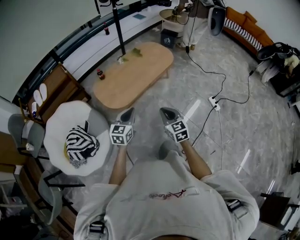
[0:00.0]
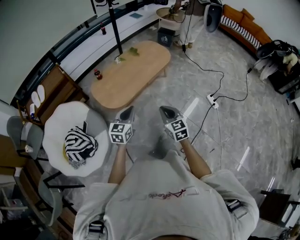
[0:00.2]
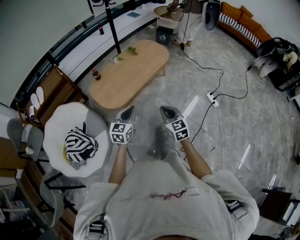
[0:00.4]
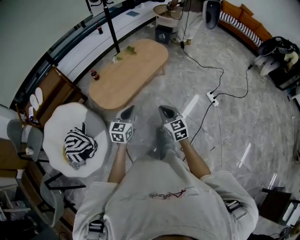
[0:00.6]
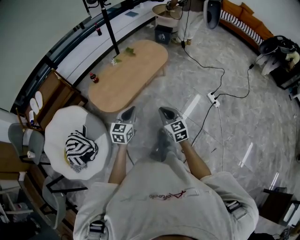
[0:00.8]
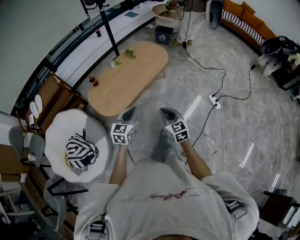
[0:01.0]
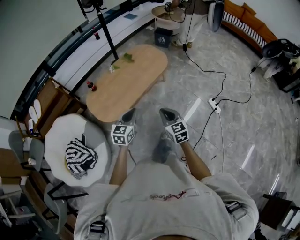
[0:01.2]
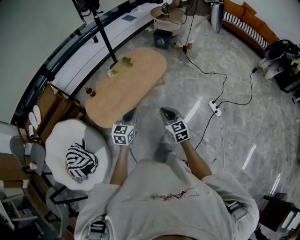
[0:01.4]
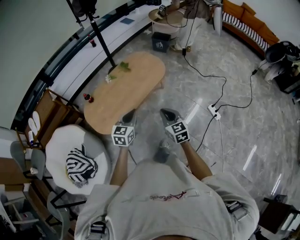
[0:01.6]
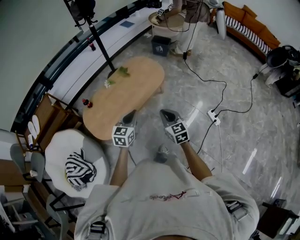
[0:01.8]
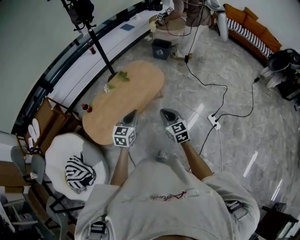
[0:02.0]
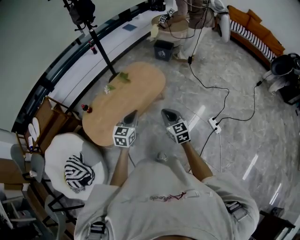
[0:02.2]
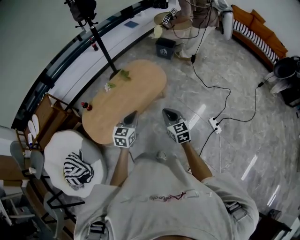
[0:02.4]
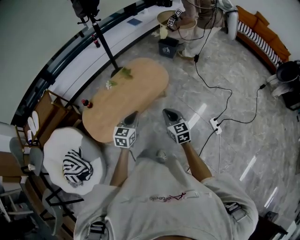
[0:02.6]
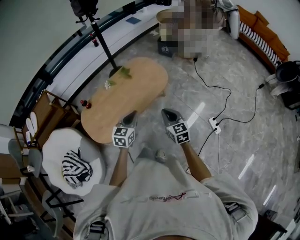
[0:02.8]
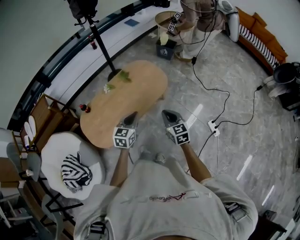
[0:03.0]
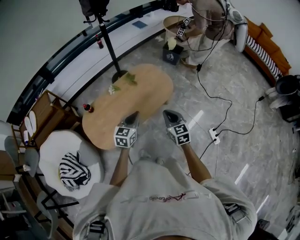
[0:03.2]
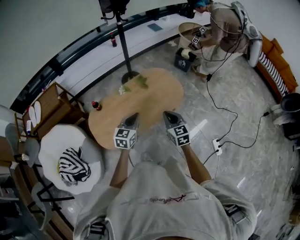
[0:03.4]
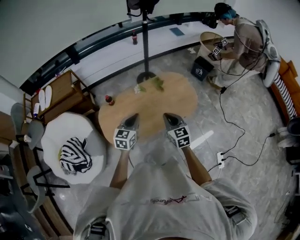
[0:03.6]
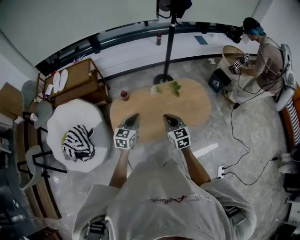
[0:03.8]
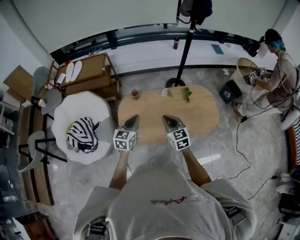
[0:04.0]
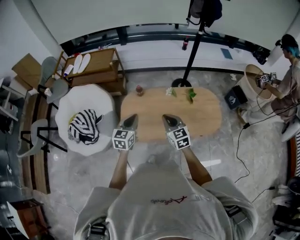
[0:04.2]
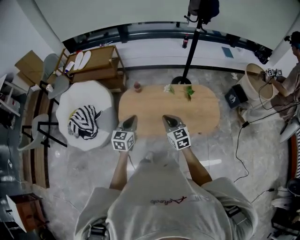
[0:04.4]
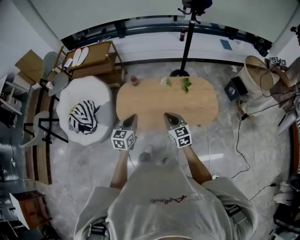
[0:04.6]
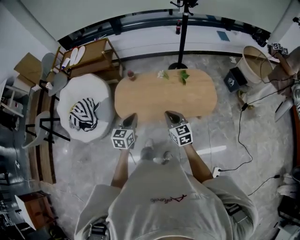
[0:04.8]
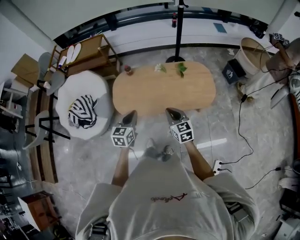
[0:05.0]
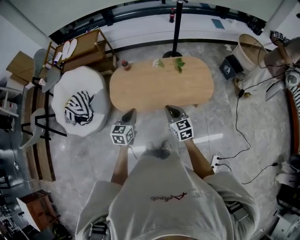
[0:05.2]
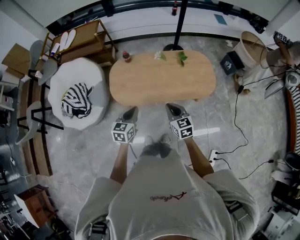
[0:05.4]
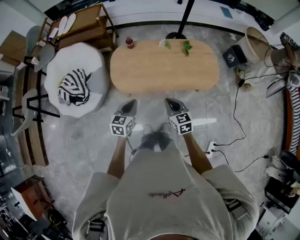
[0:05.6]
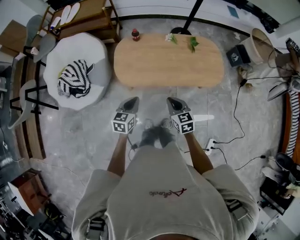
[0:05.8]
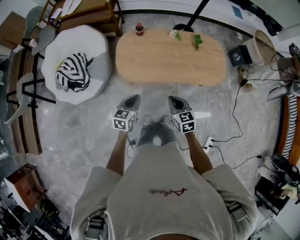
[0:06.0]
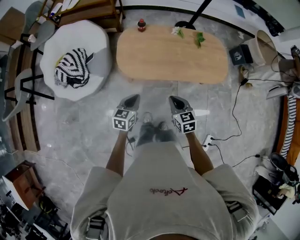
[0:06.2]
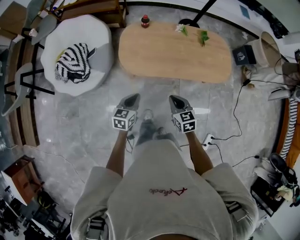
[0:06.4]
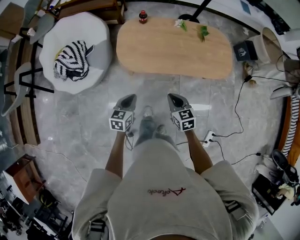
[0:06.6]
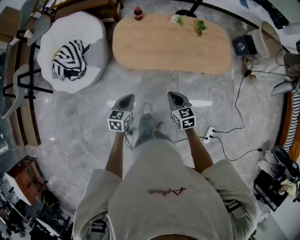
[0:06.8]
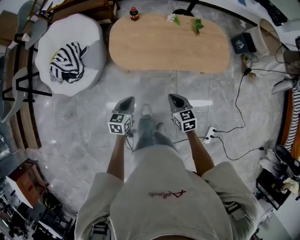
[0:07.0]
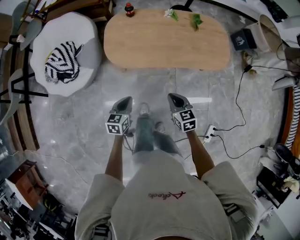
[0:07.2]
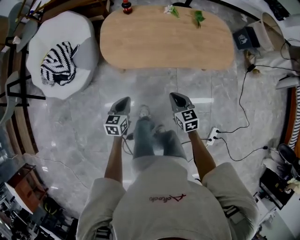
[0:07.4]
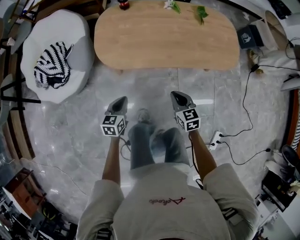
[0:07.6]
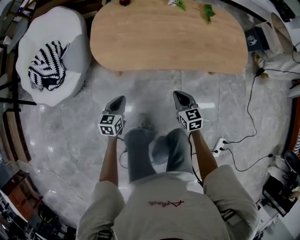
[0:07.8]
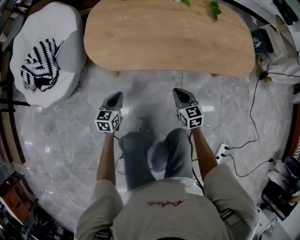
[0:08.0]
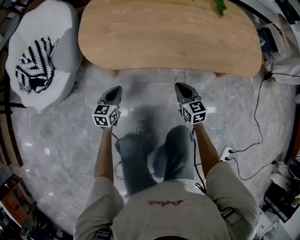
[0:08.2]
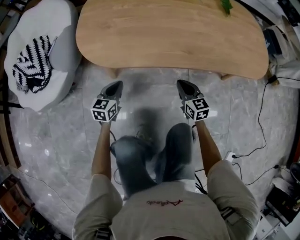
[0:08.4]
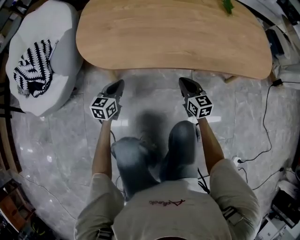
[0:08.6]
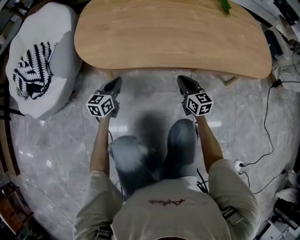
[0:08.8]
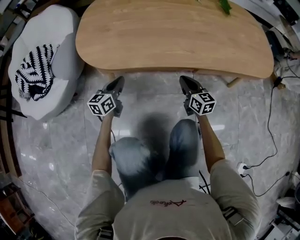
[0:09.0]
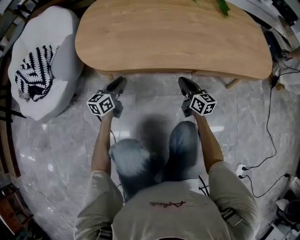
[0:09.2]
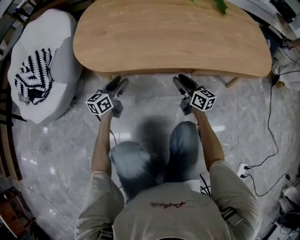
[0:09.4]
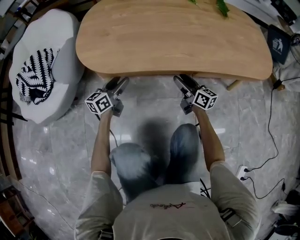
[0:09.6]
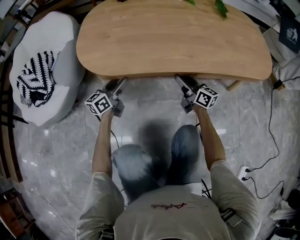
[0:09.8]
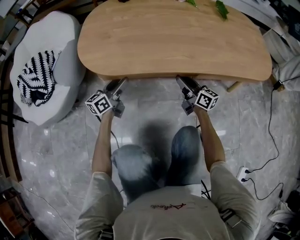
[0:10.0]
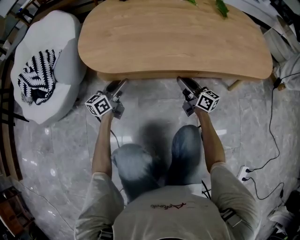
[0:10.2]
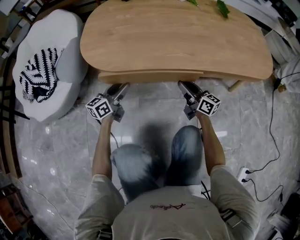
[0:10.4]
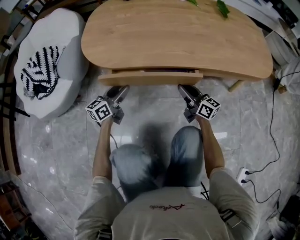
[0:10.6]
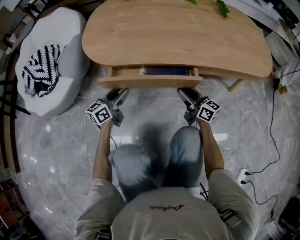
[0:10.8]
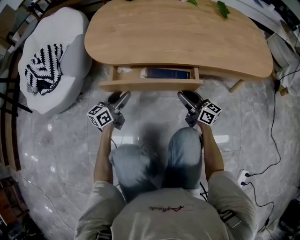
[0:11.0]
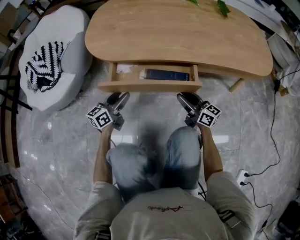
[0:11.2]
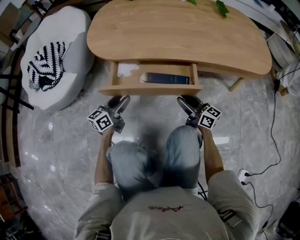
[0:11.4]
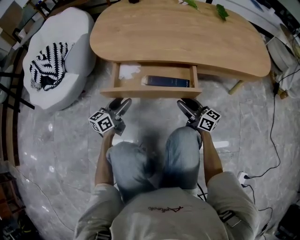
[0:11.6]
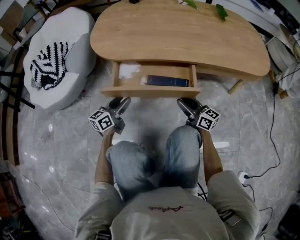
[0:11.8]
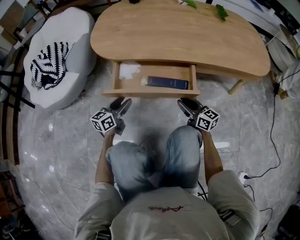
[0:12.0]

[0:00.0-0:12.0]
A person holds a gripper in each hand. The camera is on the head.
0:00.0 to 0:01.6: Both grippers travel together forward and to the right, roughly 30 cm.
0:01.6 to 0:03.0: The two grippers go some 20 cm forward.
0:03.0 to 0:04.4: The right gripper moves approximately 25 cm, and turns by roughly 50 degrees. Meanwhile the left gripper moves about 25 cm, and turns by about 50 degrees.
0:04.4 to 0:06.0: The right gripper goes some 20 cm backward, downward and to the left; the left gripper travels downward, backward and to the left by about 20 cm.
0:06.0 to 0:07.6: The grippers both shift downward by approximately 25 cm.
0:07.6 to 0:09.0: The grippers both shift downward and forward by approximately 35 cm. The left gripper swivels about 20 degrees. Meanwhile the right gripper rotates about 20 degrees.
0:09.0 to 0:10.4: The right gripper rotates some 30 degrees, and opens. The left gripper opens up.
0:10.4 to 0:12.0: The grippers both shift backward by some 15 cm.

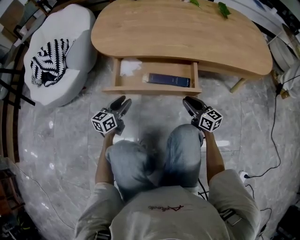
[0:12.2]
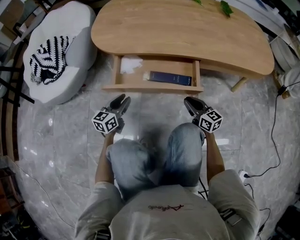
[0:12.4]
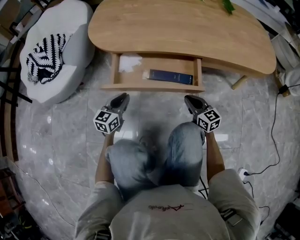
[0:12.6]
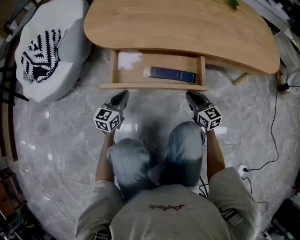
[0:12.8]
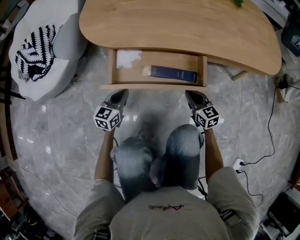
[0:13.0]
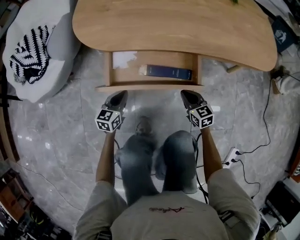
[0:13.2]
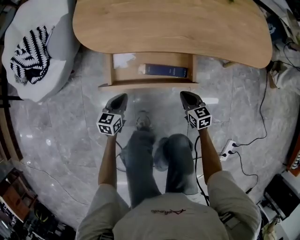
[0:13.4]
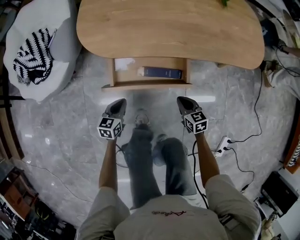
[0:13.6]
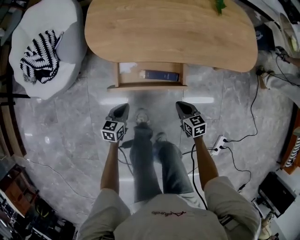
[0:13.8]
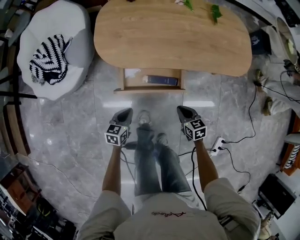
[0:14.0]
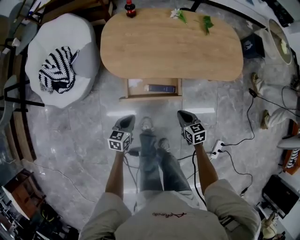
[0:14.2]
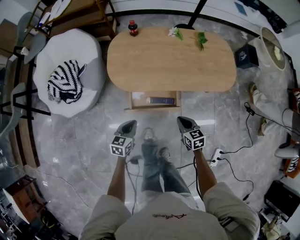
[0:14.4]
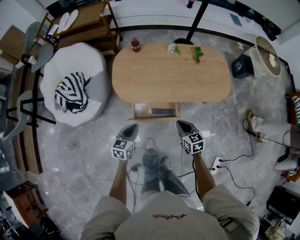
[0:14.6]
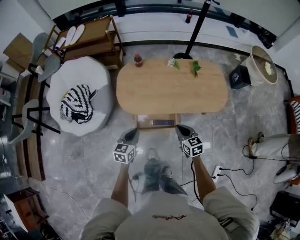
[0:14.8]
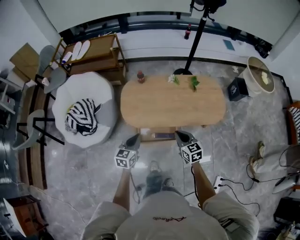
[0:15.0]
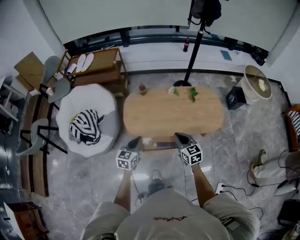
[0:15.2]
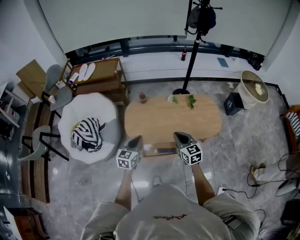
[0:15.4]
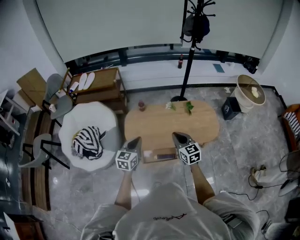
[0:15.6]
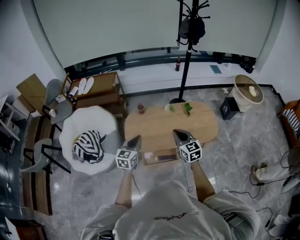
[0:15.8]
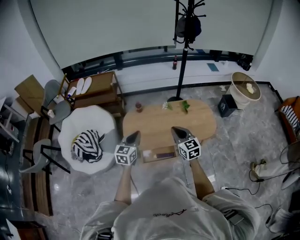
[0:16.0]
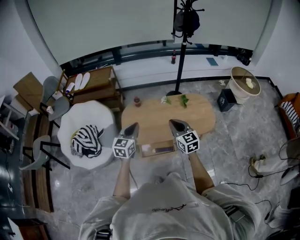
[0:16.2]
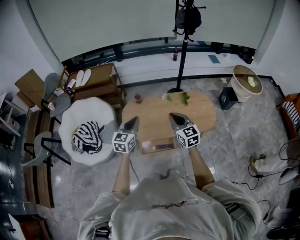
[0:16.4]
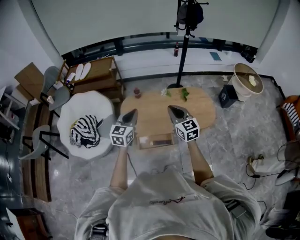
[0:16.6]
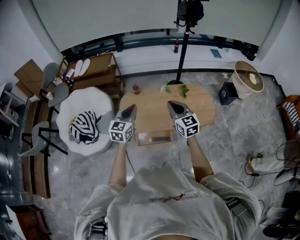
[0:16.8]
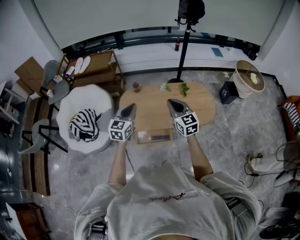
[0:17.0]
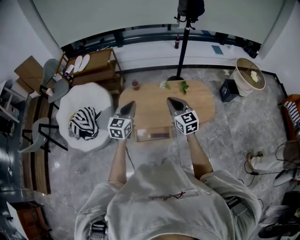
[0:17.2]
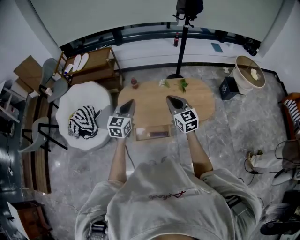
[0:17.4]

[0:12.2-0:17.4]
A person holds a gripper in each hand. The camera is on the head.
0:12.2 to 0:14.0: Both grippers move upward, about 20 cm. The left gripper swivels some 20 degrees, and closes. The right gripper points its fingers roughly 30 degrees further downward.
0:14.0 to 0:15.6: The grippers both shift upward by roughly 60 cm. The left gripper rotates approximately 30 degrees. The right gripper turns by about 30 degrees.
0:15.6 to 0:17.4: The two grippers go roughly 10 cm upward and to the right.

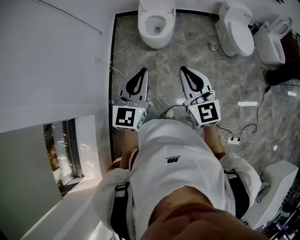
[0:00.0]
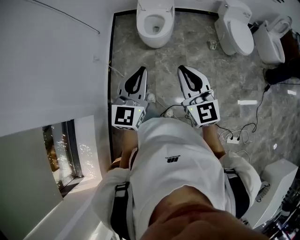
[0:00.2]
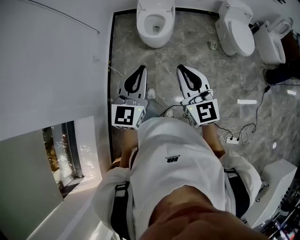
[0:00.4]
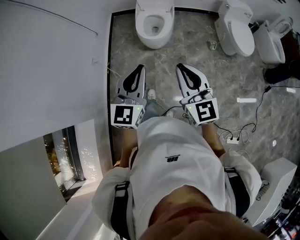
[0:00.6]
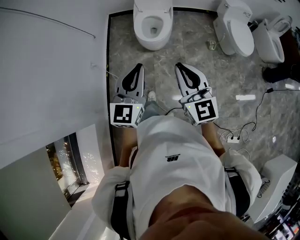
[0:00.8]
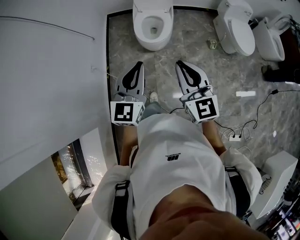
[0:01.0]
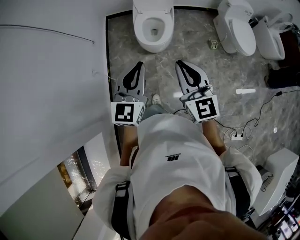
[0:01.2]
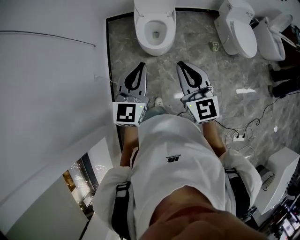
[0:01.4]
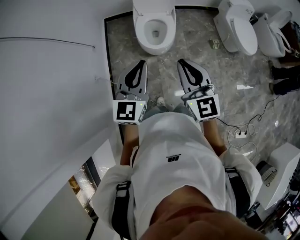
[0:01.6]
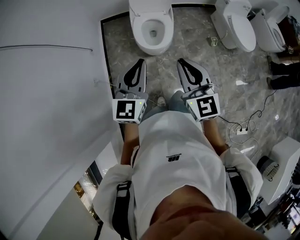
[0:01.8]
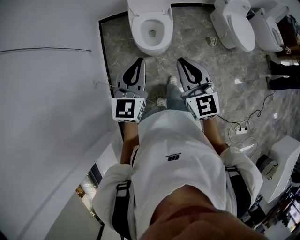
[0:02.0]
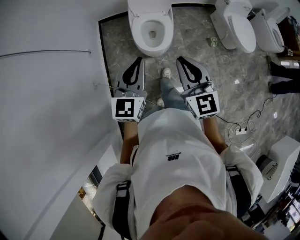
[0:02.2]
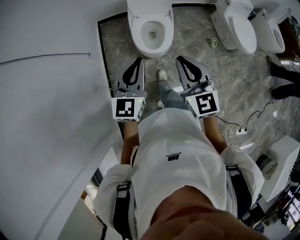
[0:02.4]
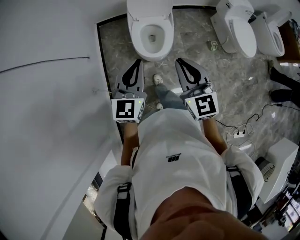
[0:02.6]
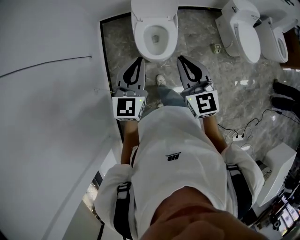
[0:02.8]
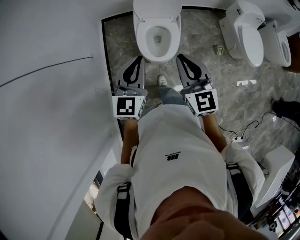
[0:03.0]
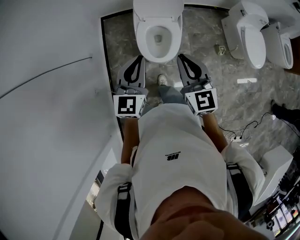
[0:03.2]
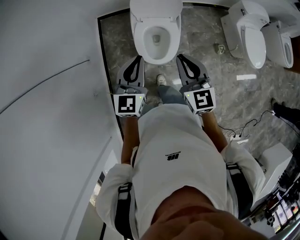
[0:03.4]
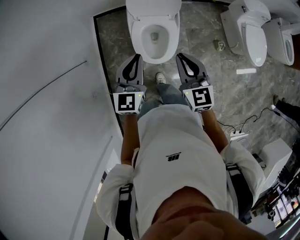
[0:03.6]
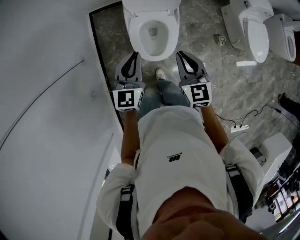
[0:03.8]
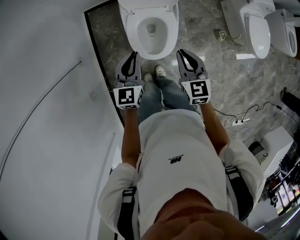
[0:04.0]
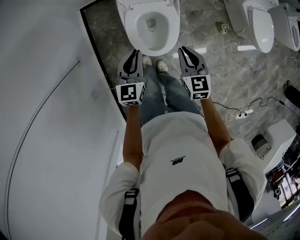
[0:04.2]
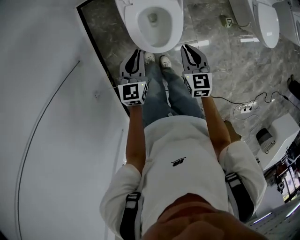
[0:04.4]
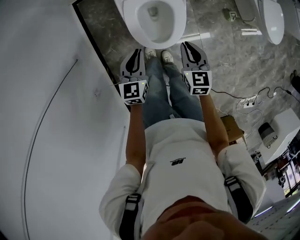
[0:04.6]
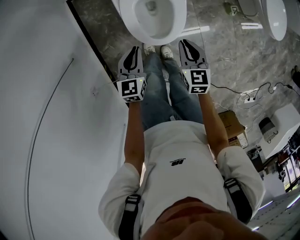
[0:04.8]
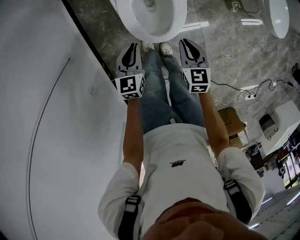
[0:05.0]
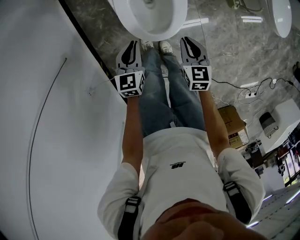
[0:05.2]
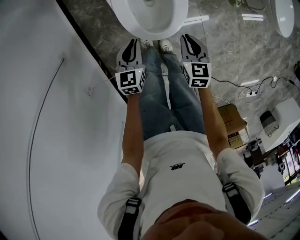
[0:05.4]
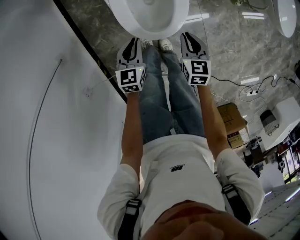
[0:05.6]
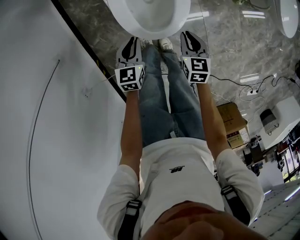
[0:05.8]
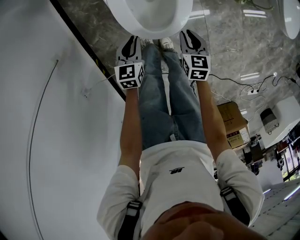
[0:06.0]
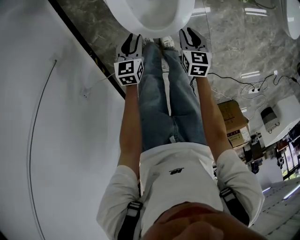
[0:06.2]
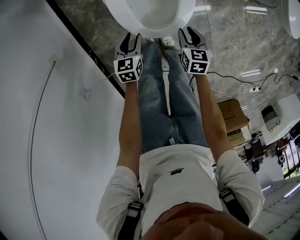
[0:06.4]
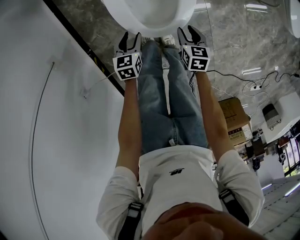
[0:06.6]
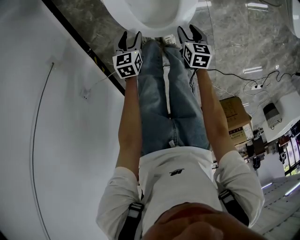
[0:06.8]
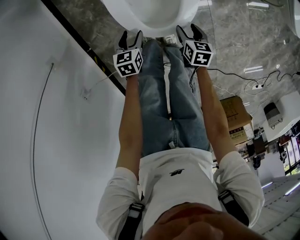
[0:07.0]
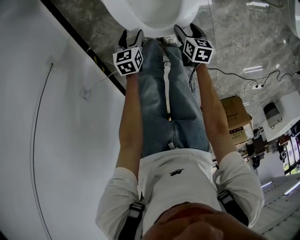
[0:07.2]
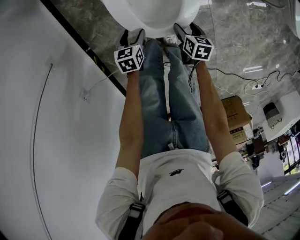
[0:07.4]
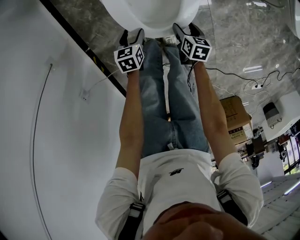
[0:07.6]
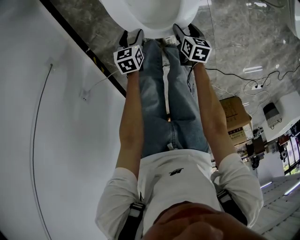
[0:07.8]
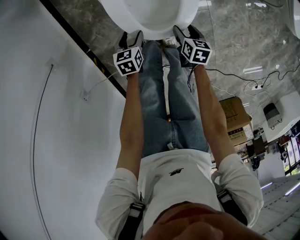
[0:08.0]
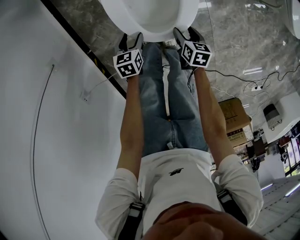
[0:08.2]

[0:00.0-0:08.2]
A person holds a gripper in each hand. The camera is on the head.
0:00.0 to 0:01.6: The left gripper heads forward, covering approximately 25 cm, while the right gripper moves forward and to the left, roughly 25 cm.
0:01.6 to 0:03.2: Both grippers move forward, about 25 cm.
0:03.2 to 0:05.0: Both grippers travel together downward, about 35 cm. The right gripper changes its angle by about 40 degrees, while the left gripper turns by some 30 degrees.
0:05.0 to 0:06.6: Both grippers travel together downward, about 25 cm. The left gripper turns by approximately 20 degrees, and opens. Meanwhile the right gripper swivels about 20 degrees, and opens up.
0:06.6 to 0:08.2: The right gripper opens.
